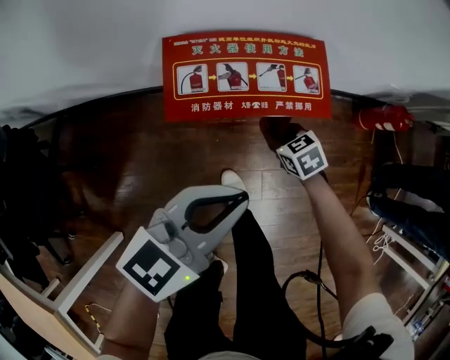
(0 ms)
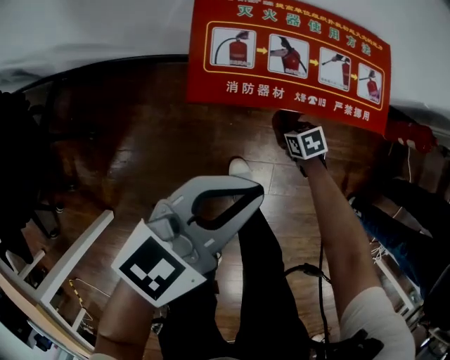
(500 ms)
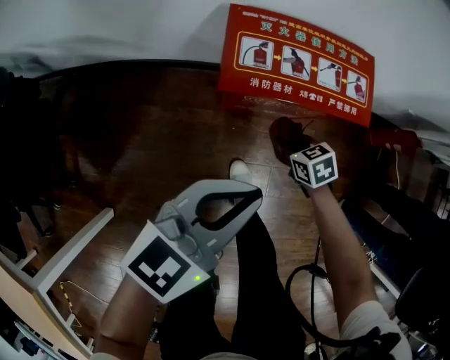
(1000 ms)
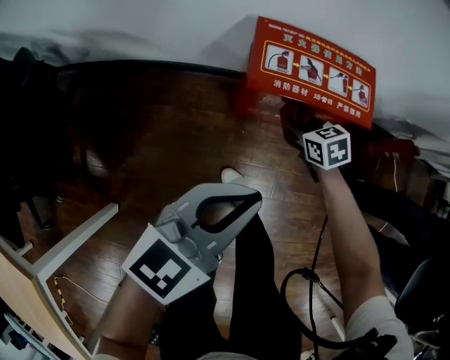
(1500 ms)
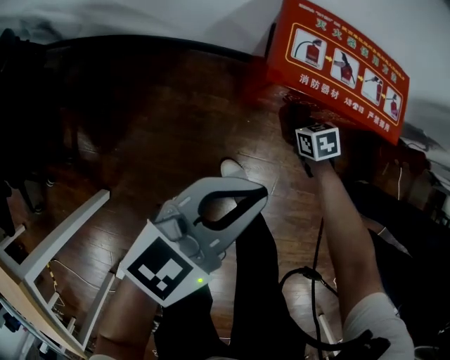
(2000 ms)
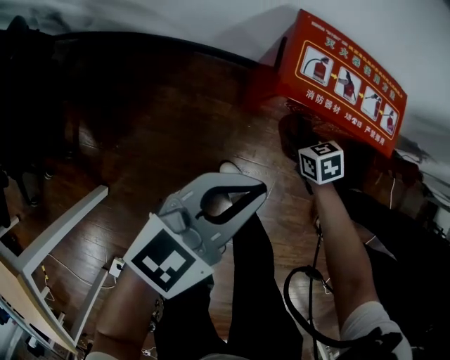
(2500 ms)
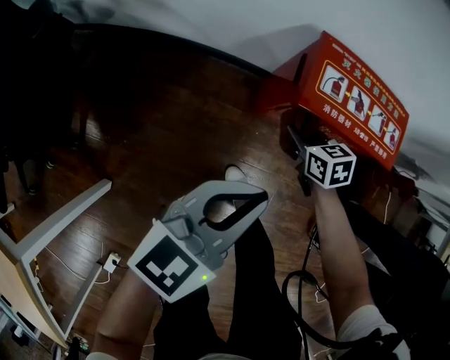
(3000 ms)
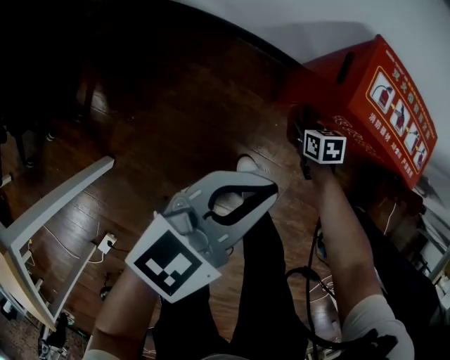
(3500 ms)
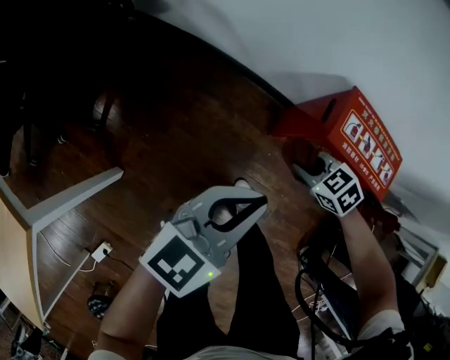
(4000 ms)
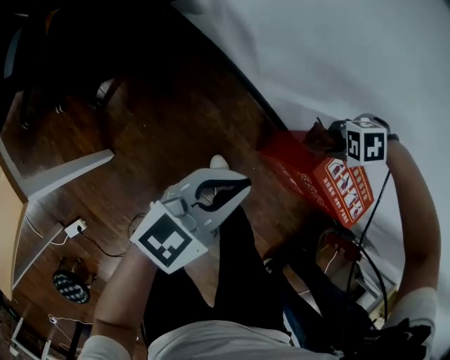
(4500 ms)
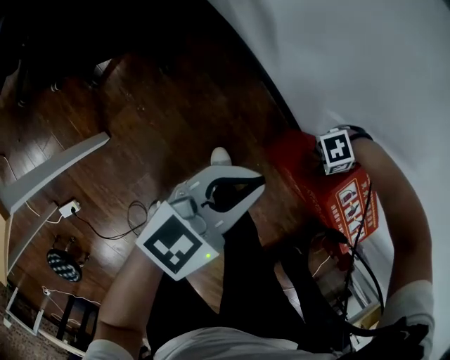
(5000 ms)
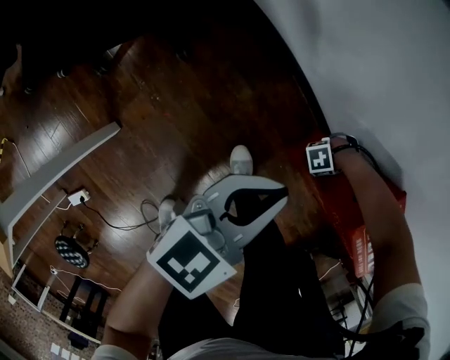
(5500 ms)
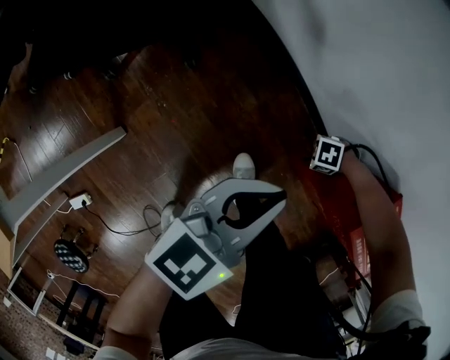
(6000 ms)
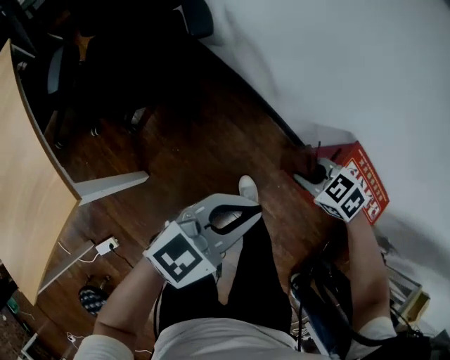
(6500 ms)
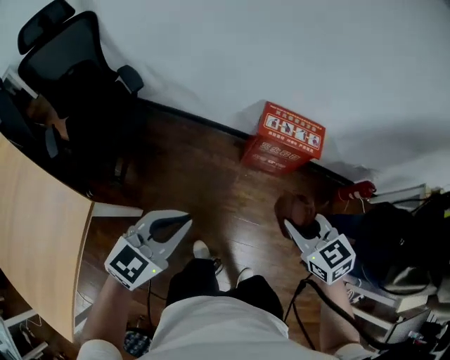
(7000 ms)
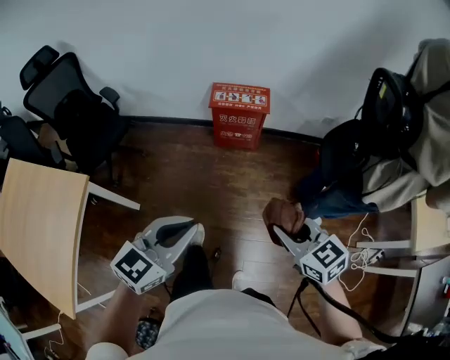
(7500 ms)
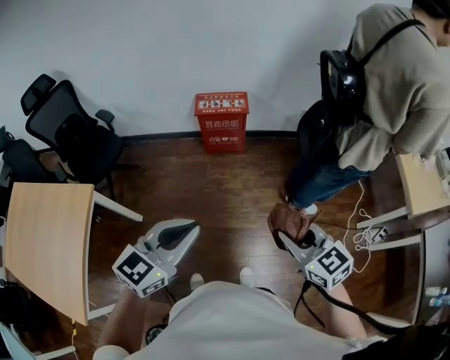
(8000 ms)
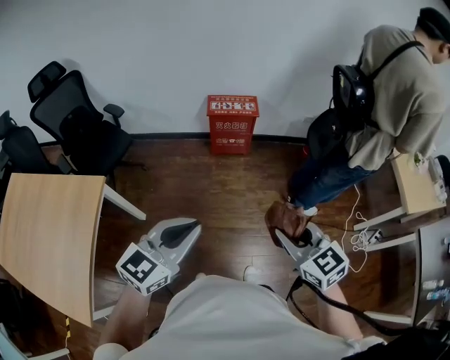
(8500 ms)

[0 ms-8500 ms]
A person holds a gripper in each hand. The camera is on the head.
0 ms to 2000 ms: The right gripper goes up and down, approximately 20 cm each way, reversing 2 times, while the left gripper moves to the left, about 10 cm.
2000 ms to 4000 ms: The left gripper changes place by some 15 cm; the right gripper swings up and down, about 20 cm each way, with 2 reversals, and rolls counterclockwise, seen from behind, by about 40 degrees.
4000 ms to 6500 ms: The left gripper changes place by about 15 cm; the right gripper moves up and down over about 35 cm, changing direction 2 times.
6500 ms to 8500 ms: The two grippers travel together, approximately 60 cm. The right gripper angles its fingers upward, by about 40 degrees; the left gripper rotates roughly 20 degrees.

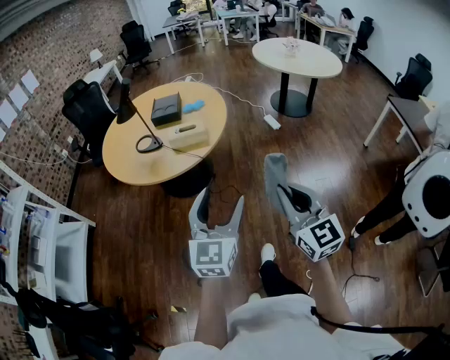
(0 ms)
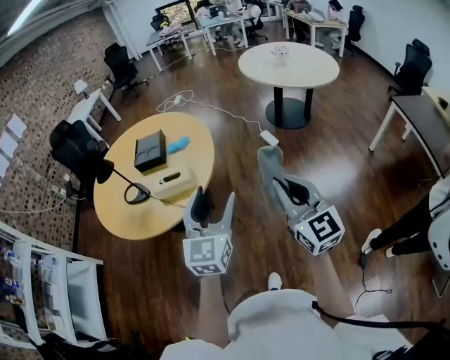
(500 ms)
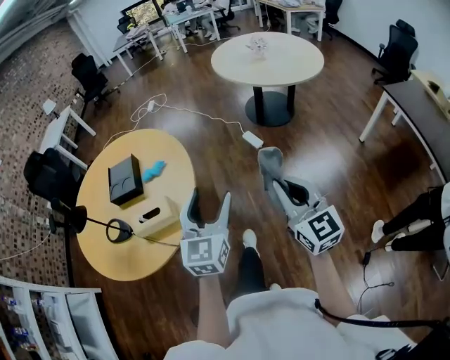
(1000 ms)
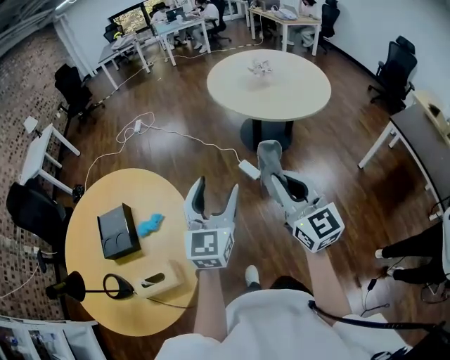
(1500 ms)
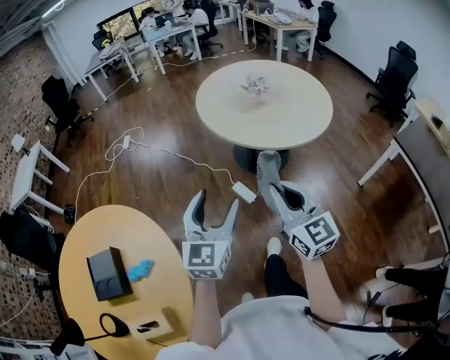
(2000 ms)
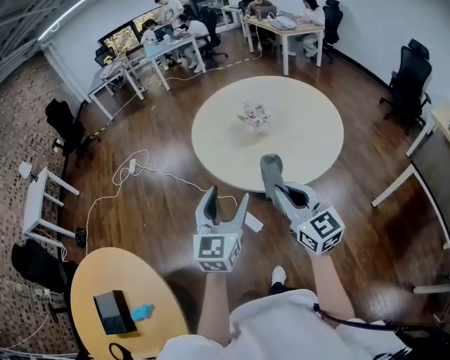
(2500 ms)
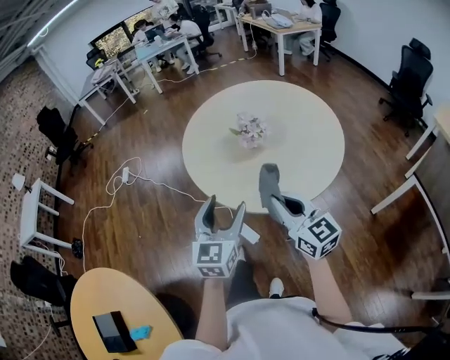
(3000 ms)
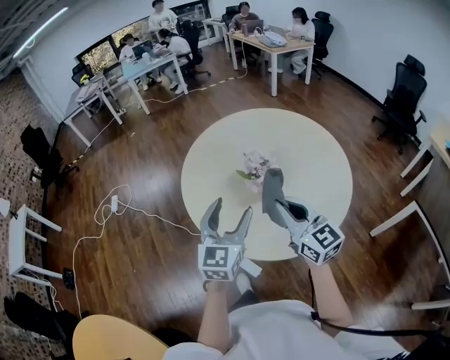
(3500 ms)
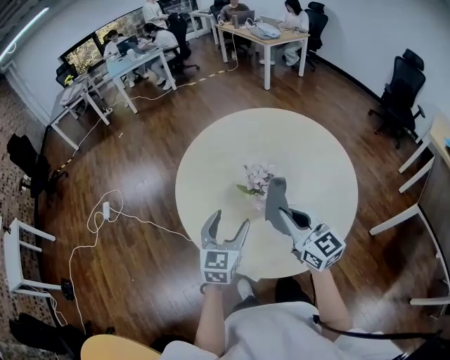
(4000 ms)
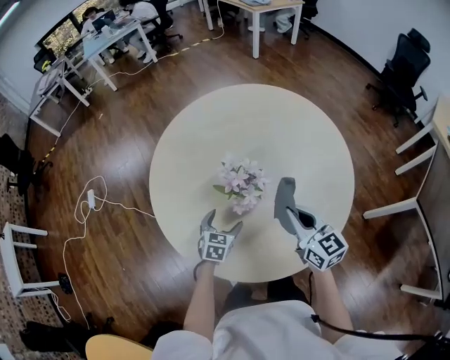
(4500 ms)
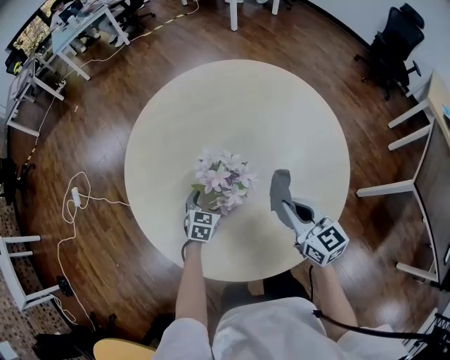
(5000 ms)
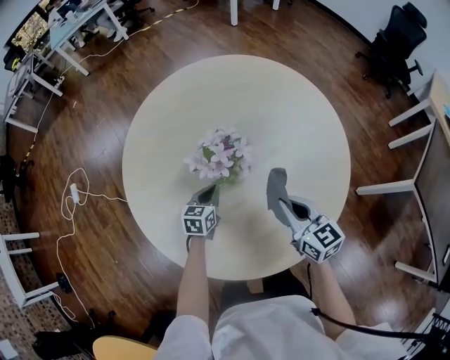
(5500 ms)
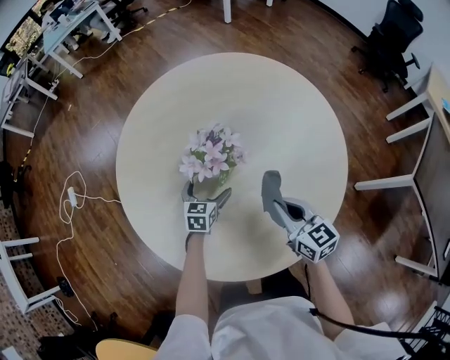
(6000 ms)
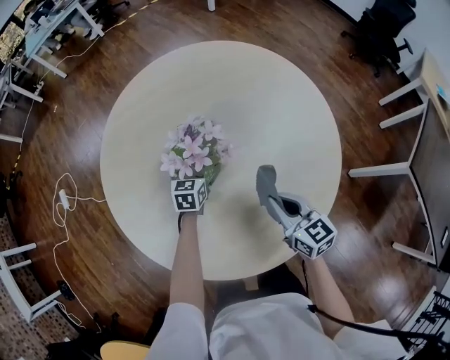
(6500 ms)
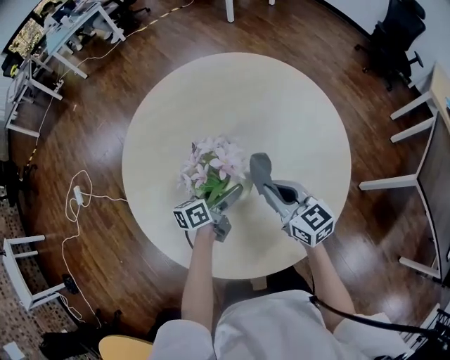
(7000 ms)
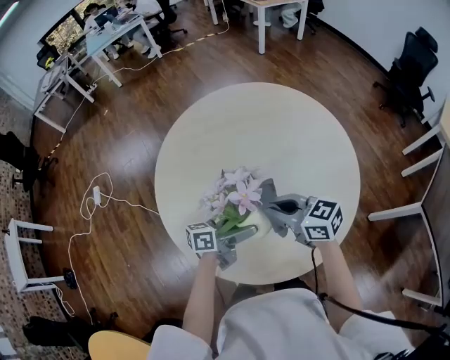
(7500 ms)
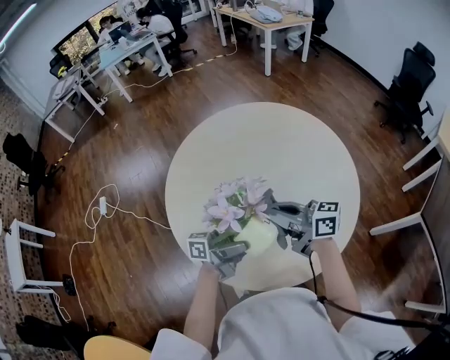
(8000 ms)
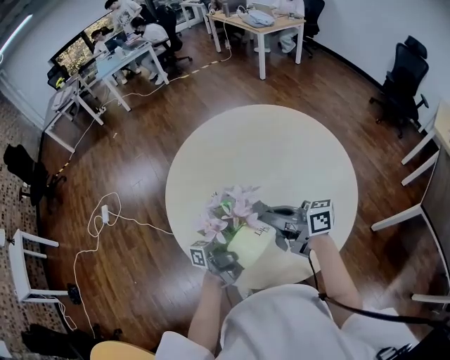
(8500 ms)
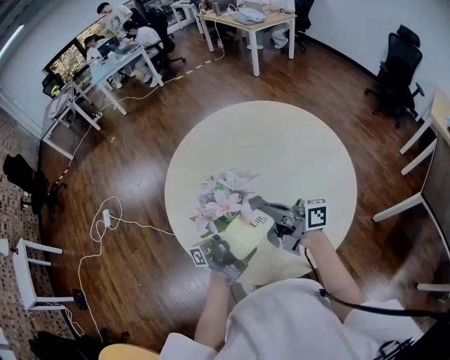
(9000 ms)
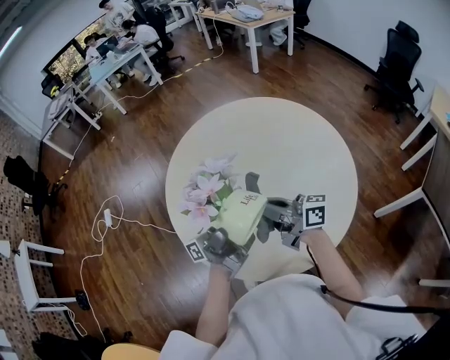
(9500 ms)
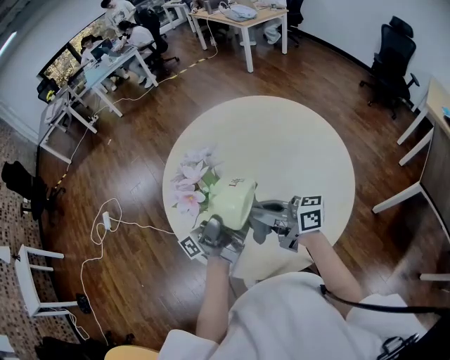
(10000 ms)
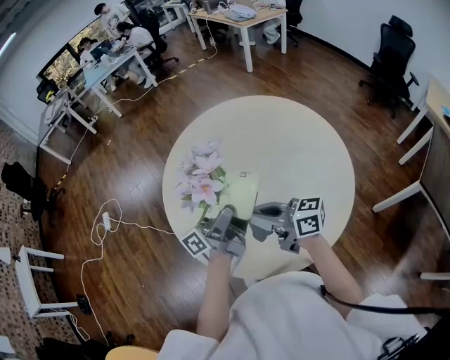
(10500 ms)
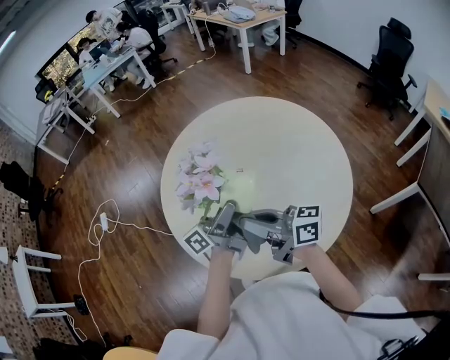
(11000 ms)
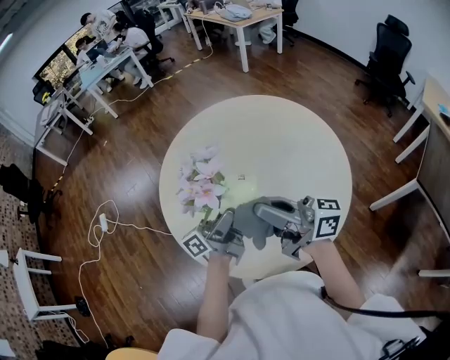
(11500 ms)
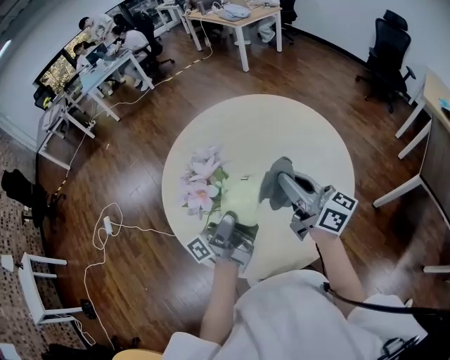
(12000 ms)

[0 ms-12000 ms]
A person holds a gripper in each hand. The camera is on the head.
0 ms to 2000 ms: The two grippers travel together, forward, approximately 90 cm.
2000 ms to 4000 ms: The pair of grippers is taken forward, some 60 cm.
4000 ms to 6000 ms: The right gripper shifts about 25 cm downward, to the right and forward, and rotates roughly 20 degrees. Meanwhile the left gripper is displaced downward and forward by about 35 cm, changes its angle by roughly 30 degrees, and opens its fingers.
6000 ms to 8000 ms: The left gripper travels upward by roughly 30 cm, and tips its fingers upward by some 60 degrees. Meanwhile the right gripper heads upward, covering about 15 cm, and swivels about 40 degrees.
8000 ms to 10000 ms: The left gripper travels upward by approximately 10 cm, and turns by about 30 degrees.
10000 ms to 12000 ms: The right gripper is displaced upward and to the right by roughly 10 cm, and rotates about 30 degrees.

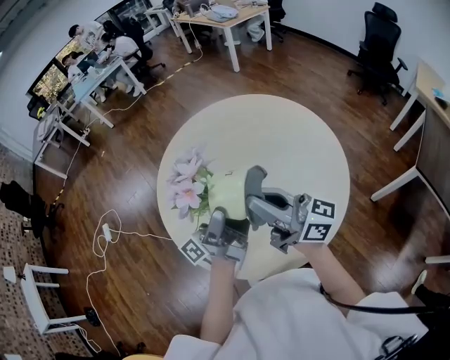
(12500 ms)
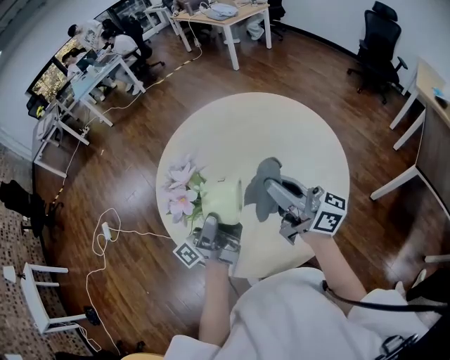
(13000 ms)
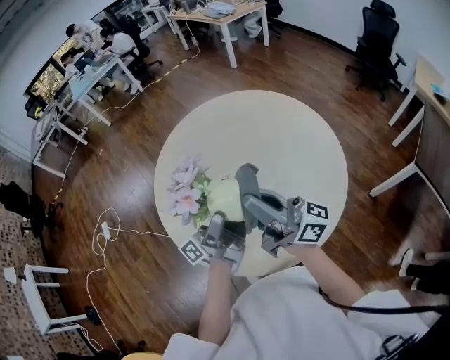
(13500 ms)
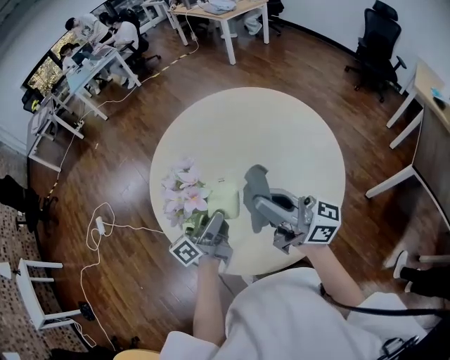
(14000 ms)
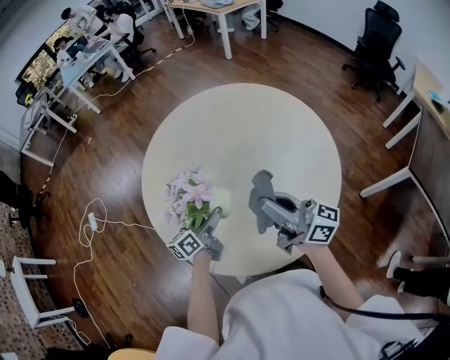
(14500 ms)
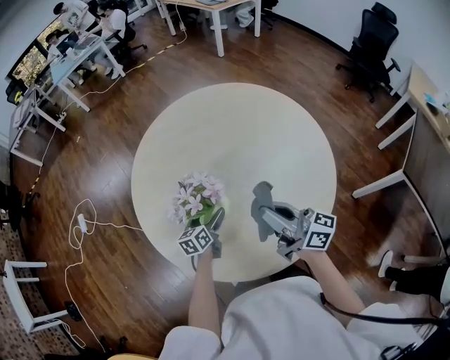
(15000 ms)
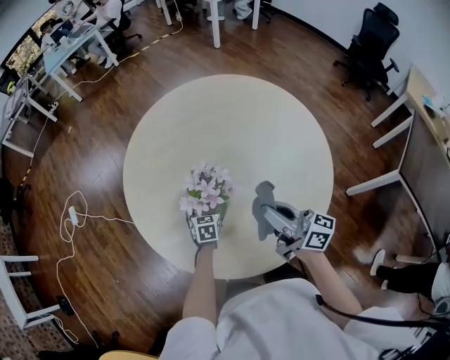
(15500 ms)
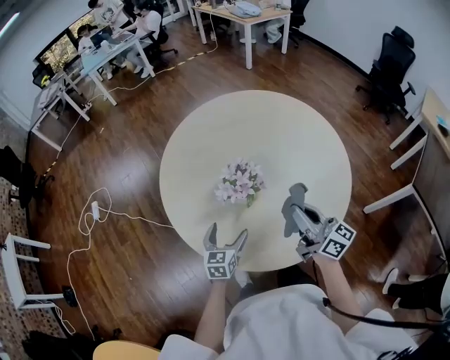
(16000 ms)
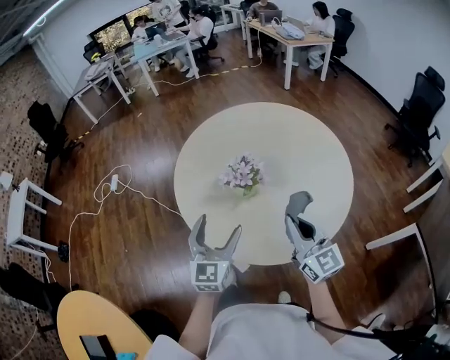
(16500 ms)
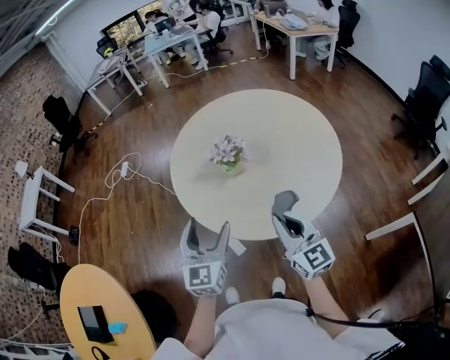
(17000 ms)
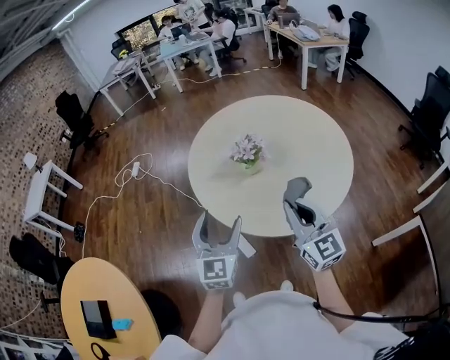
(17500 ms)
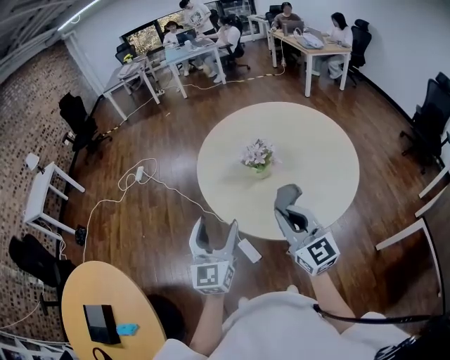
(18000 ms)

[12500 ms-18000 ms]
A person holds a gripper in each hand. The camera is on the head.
12500 ms to 14500 ms: The left gripper travels downward by approximately 25 cm, and tilts its fingers about 40 degrees downward. Meanwhile the right gripper shifts some 5 cm downward.
14500 ms to 16000 ms: The right gripper changes place by about 5 cm; the left gripper moves backward, about 10 cm, reaches approximately 15 cm downward, then returns, and rotates some 40 degrees.
16000 ms to 18000 ms: The left gripper is displaced backward and upward by some 35 cm, and angles its fingers upward, by roughly 30 degrees. The right gripper shifts about 25 cm backward and upward, and rotates some 40 degrees.
